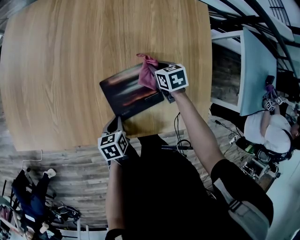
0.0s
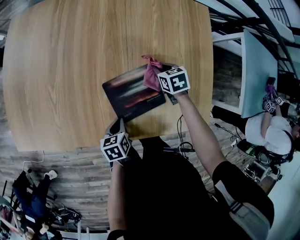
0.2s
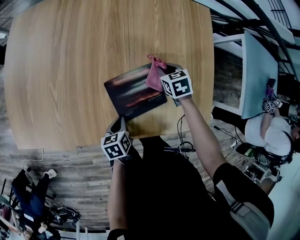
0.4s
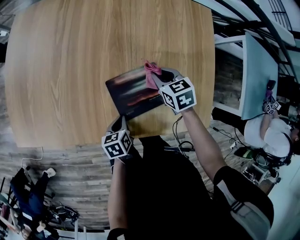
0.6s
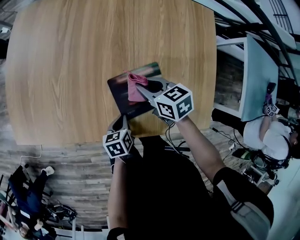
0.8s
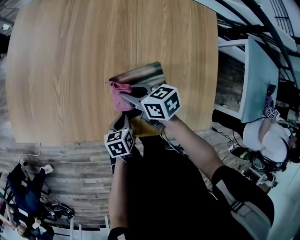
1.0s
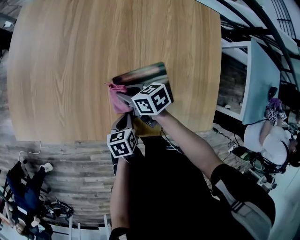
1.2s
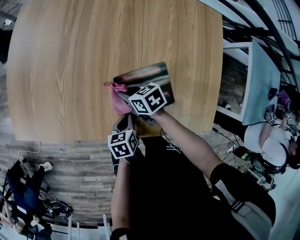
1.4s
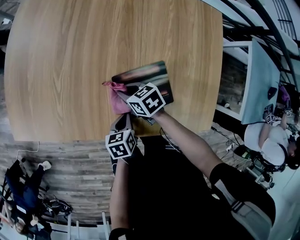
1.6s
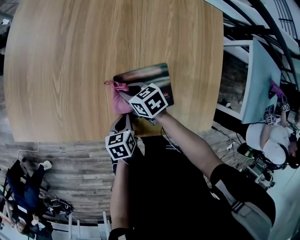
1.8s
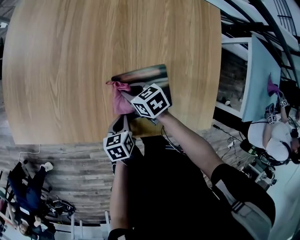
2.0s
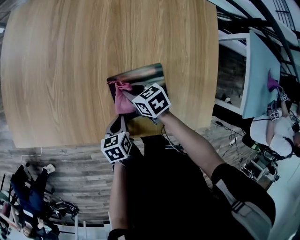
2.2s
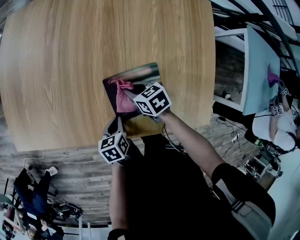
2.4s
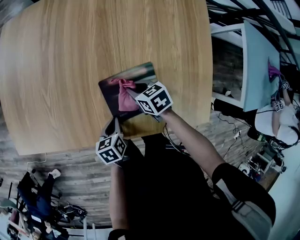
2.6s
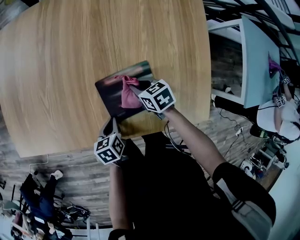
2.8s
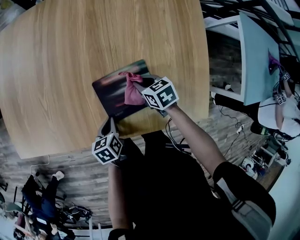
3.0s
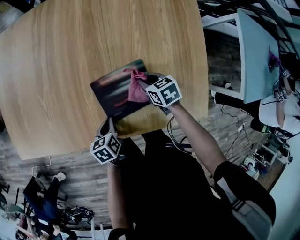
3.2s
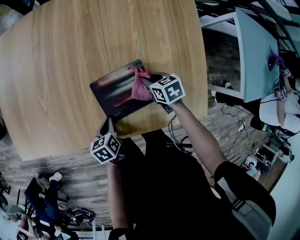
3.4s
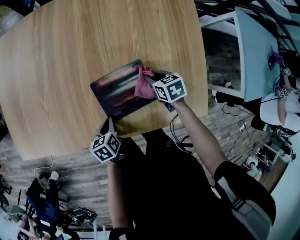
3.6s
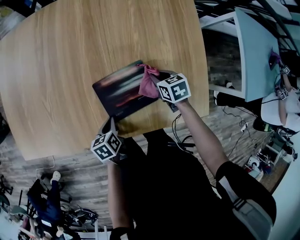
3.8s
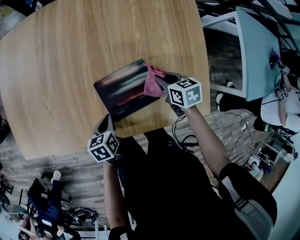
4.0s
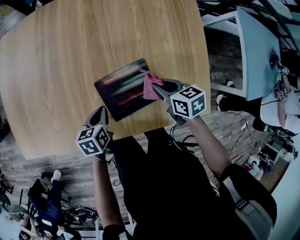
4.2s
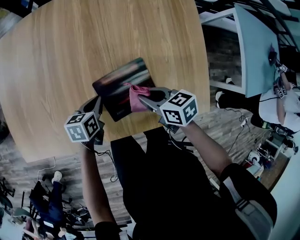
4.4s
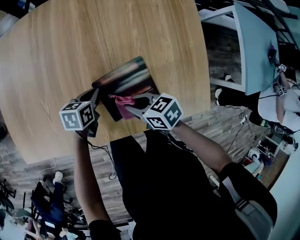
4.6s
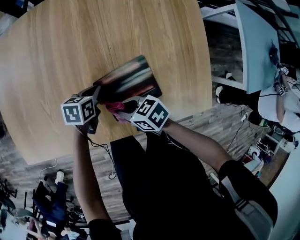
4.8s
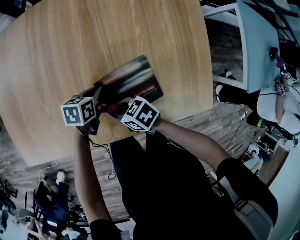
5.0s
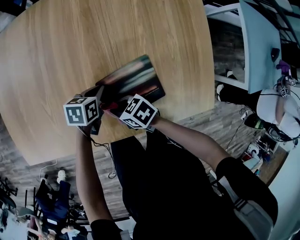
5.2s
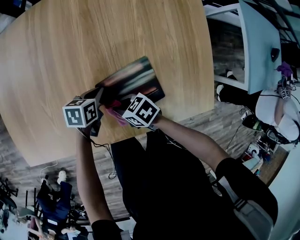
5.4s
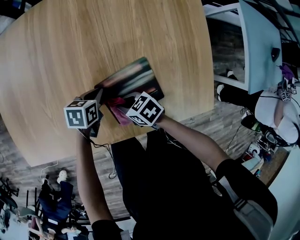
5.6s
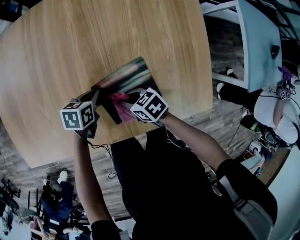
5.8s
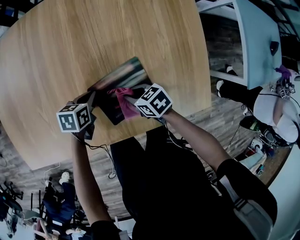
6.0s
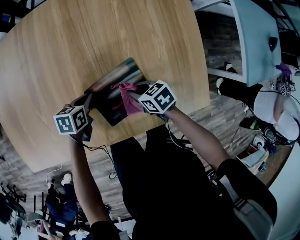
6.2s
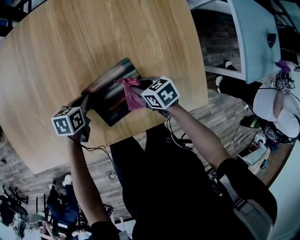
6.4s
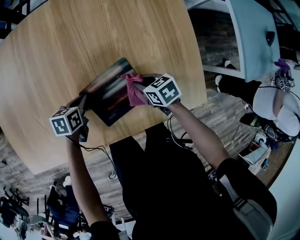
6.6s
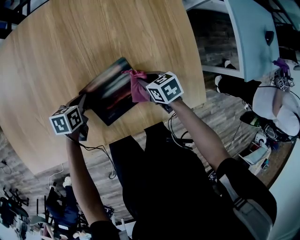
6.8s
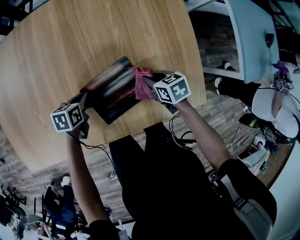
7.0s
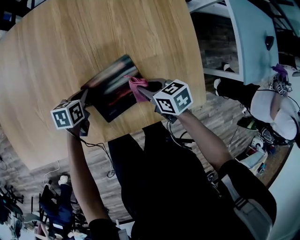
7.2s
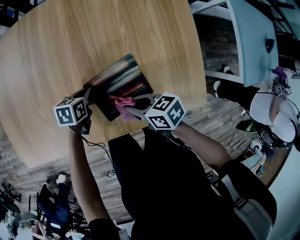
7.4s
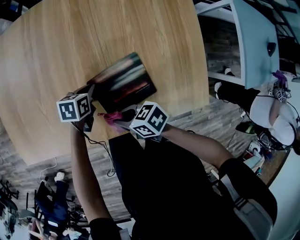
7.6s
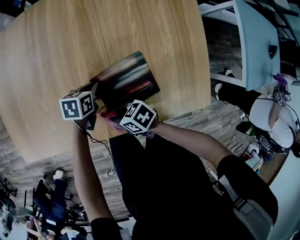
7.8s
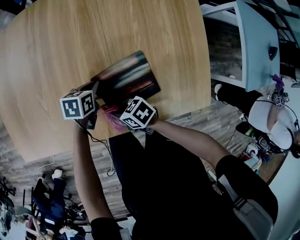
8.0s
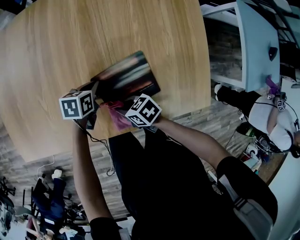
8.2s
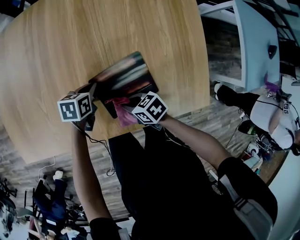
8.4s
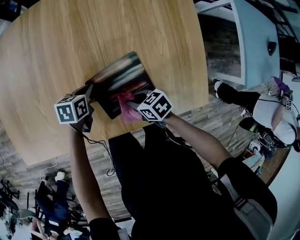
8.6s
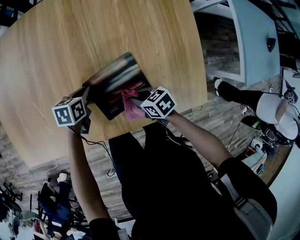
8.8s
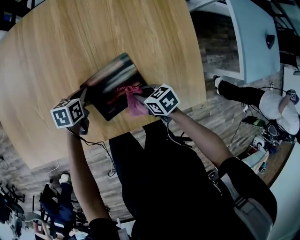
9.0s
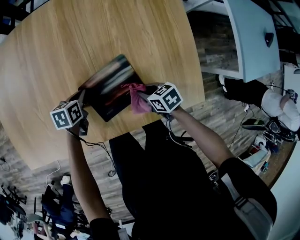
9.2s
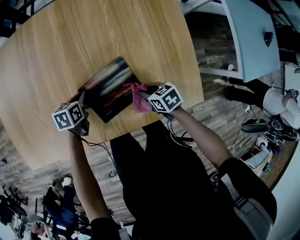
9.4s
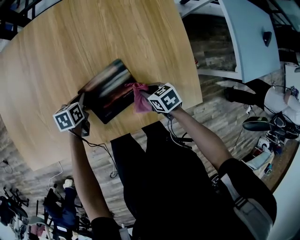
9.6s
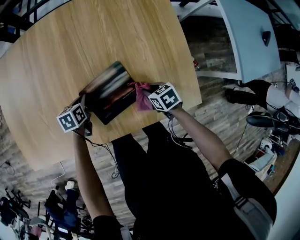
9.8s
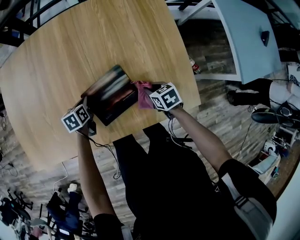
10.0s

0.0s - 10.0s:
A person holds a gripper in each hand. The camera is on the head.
0.0s - 1.4s: The right gripper moves approximately 10 cm upward and comes back, and swivels about 30 degrees.
1.4s - 2.8s: The right gripper heads to the right, covering some 15 cm.
2.8s - 4.2s: The right gripper shifts some 10 cm upward and to the right. Meanwhile the left gripper moves forward, about 5 cm.
4.2s - 5.8s: The right gripper ends up approximately 15 cm from where it was, and swivels about 20 degrees; the left gripper shifts by about 10 cm, and changes its angle by some 20 degrees.
5.8s - 7.2s: The right gripper ends up approximately 15 cm from where it was.
8.6s - 10.0s: The right gripper ends up some 15 cm from where it was, and turns by about 20 degrees.

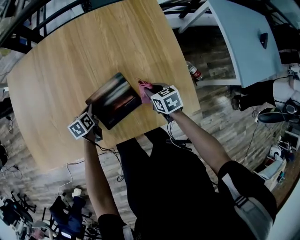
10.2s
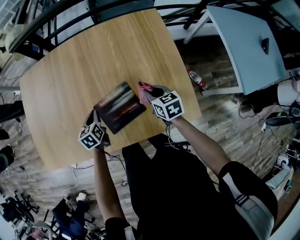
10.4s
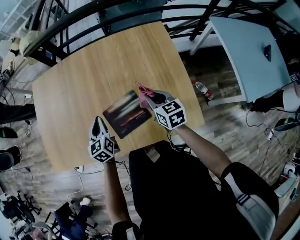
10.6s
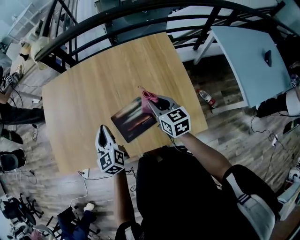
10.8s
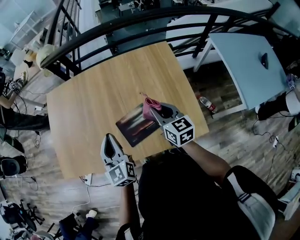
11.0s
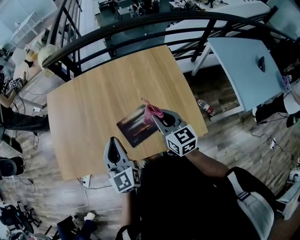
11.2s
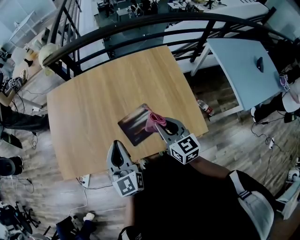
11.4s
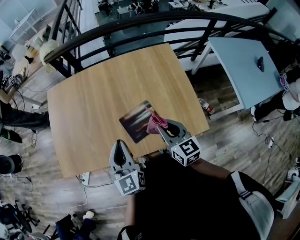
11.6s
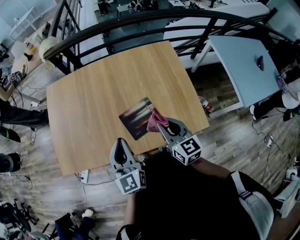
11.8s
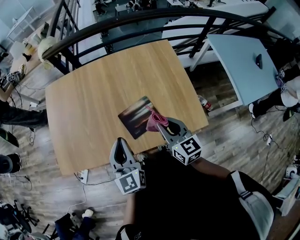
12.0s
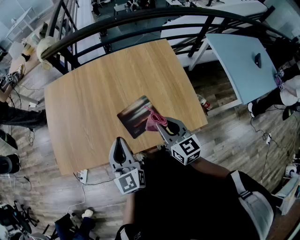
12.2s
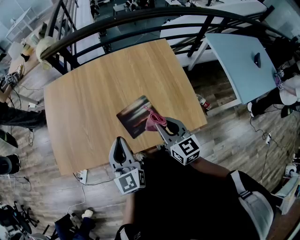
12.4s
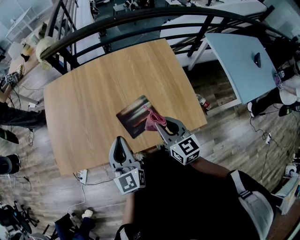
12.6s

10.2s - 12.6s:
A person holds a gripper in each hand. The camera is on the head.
10.2s - 11.4s: The grippers both shift upward by about 35 cm. The left gripper points its fingers approximately 50 degrees further upward. The right gripper points its fingers about 40 degrees further upward.
11.4s - 12.6s: There are only small adjustments of the grippers.

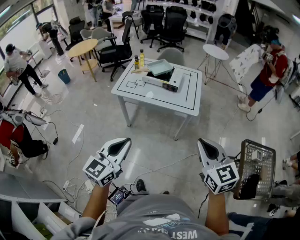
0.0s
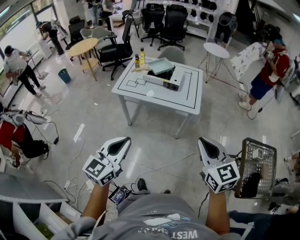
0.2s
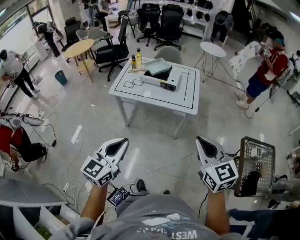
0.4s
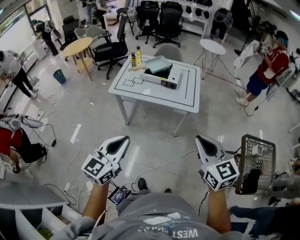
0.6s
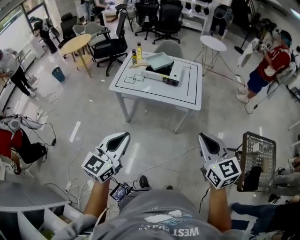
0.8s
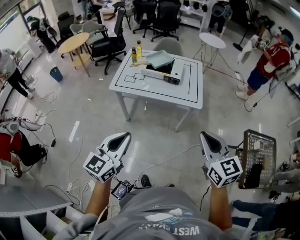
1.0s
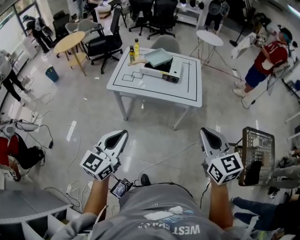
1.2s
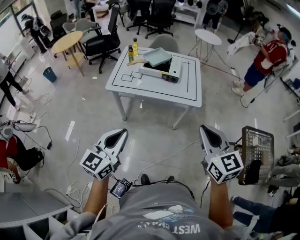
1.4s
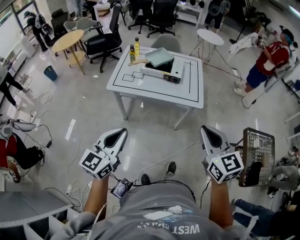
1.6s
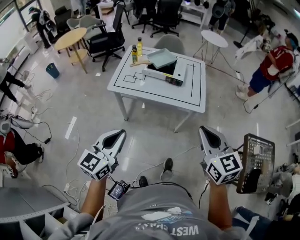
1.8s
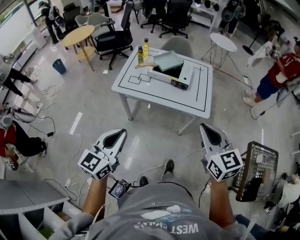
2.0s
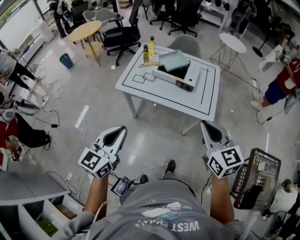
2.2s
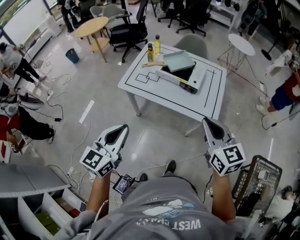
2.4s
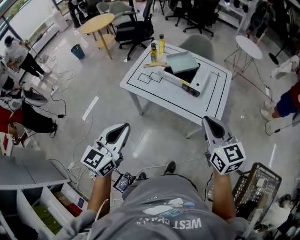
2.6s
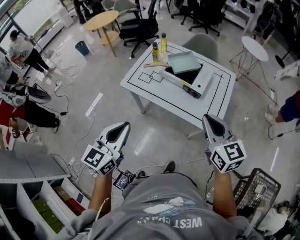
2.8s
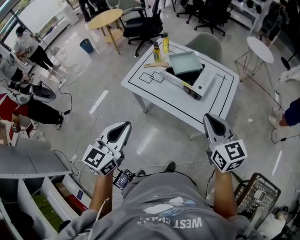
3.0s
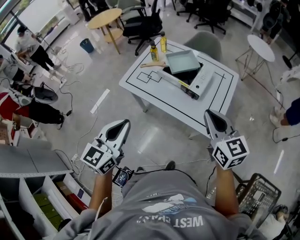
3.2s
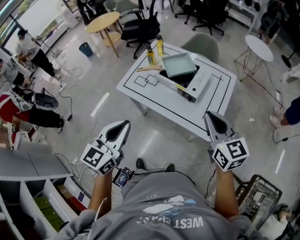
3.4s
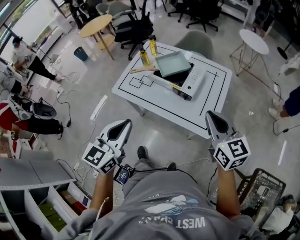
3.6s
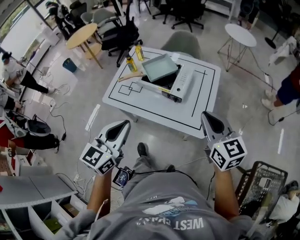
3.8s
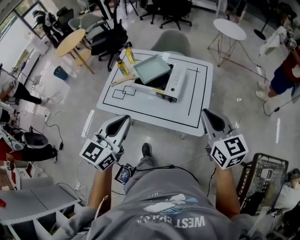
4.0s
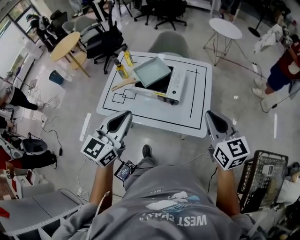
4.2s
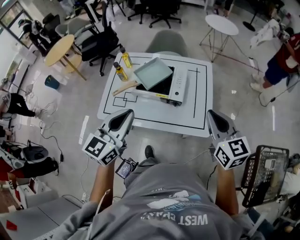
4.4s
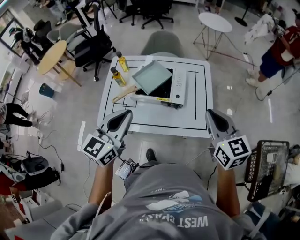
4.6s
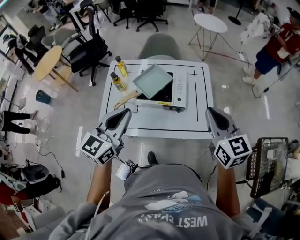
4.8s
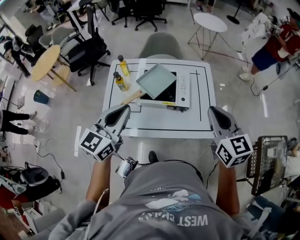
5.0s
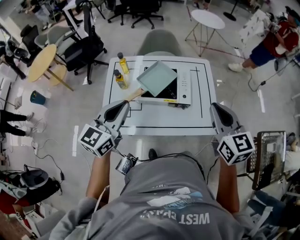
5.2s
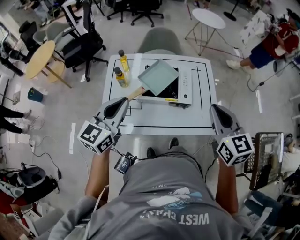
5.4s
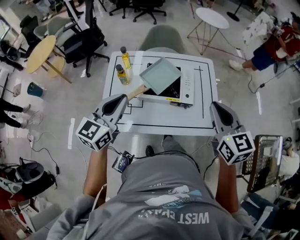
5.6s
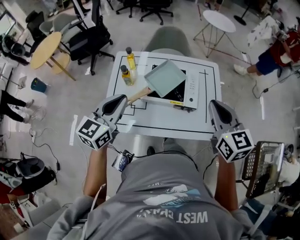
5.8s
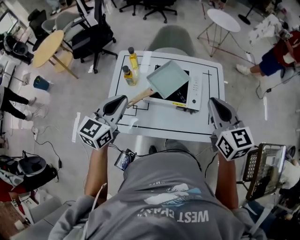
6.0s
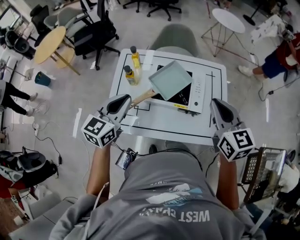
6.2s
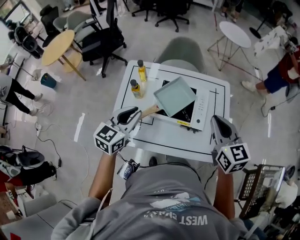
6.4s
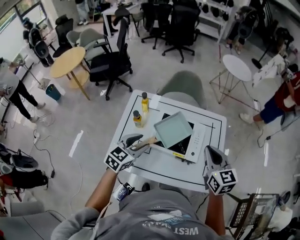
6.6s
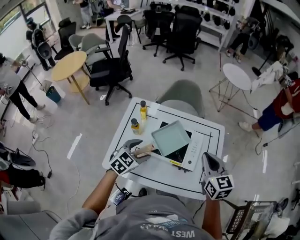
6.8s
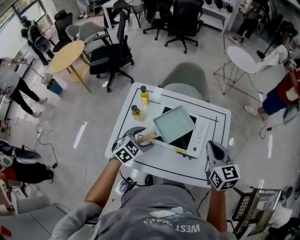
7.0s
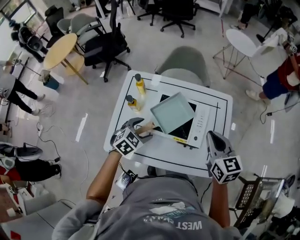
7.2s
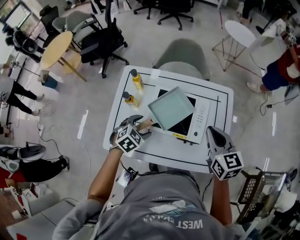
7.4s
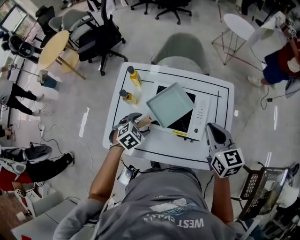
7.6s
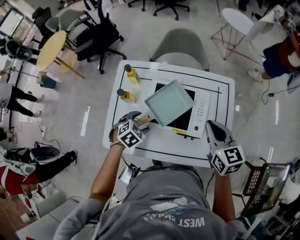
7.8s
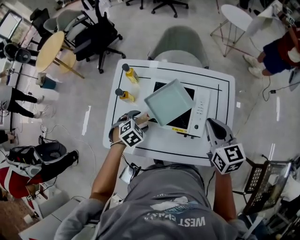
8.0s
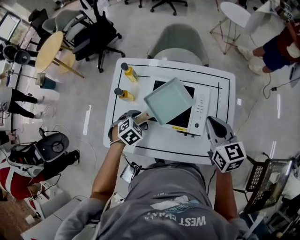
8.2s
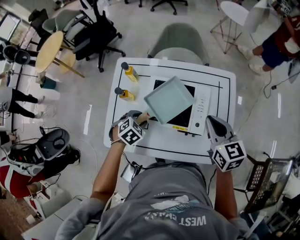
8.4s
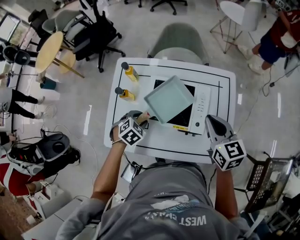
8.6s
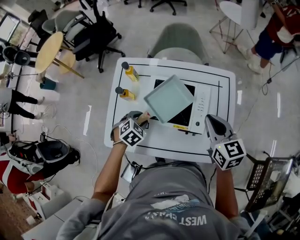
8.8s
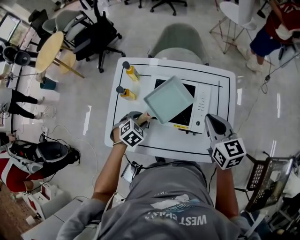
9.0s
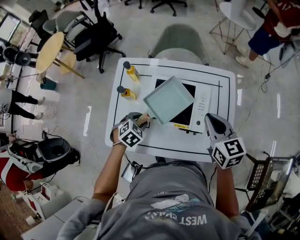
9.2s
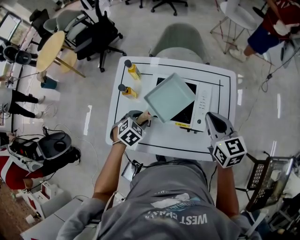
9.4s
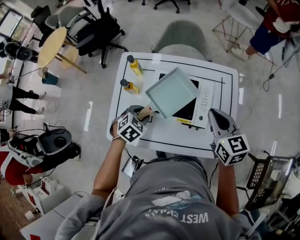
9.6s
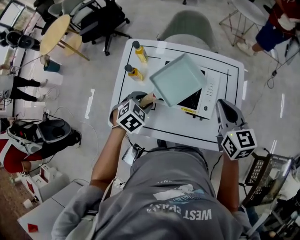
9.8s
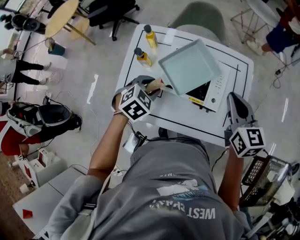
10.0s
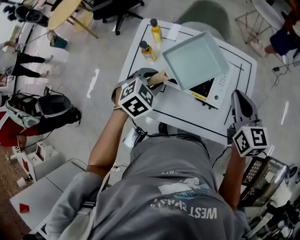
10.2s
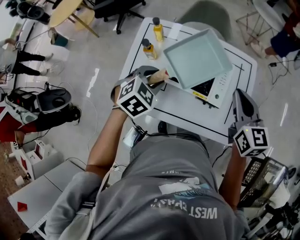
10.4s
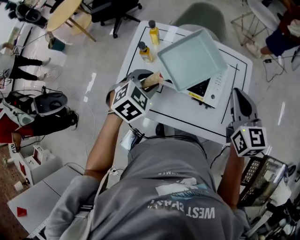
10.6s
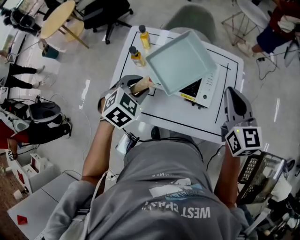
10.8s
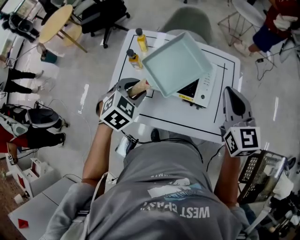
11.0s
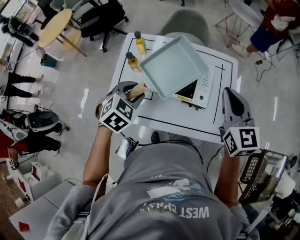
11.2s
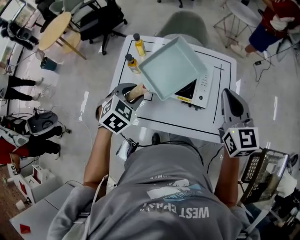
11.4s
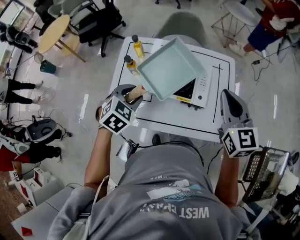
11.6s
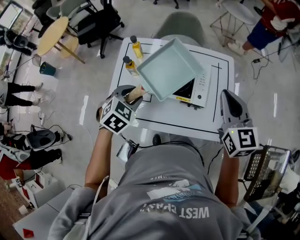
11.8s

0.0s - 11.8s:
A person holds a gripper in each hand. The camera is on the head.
0.0s - 1.4s: Both grippers move to the left and forward, approximately 10 cm.
1.4s - 3.0s: The right gripper travels forward by about 30 cm, and rotates about 20 degrees. The left gripper goes about 20 cm forward and to the right, and swivels about 20 degrees.
3.0s - 4.4s: The left gripper heads forward, covering some 20 cm, and turns by roughly 20 degrees, while the right gripper shifts roughly 10 cm forward and to the right, and turns by about 20 degrees.
4.4s - 6.0s: Both grippers move to the left and forward, some 20 cm.
6.0s - 7.4s: The left gripper is displaced downward and forward by some 20 cm, angles its fingers downward, by approximately 40 degrees, and opens, while the right gripper moves forward and downward, about 15 cm.
7.4s - 8.8s: The left gripper closes.
8.8s - 10.4s: The left gripper heads upward, covering about 10 cm; the right gripper shifts by about 5 cm.
10.4s - 11.8s: The right gripper travels upward by about 5 cm.
